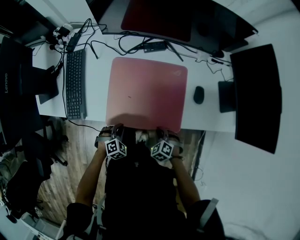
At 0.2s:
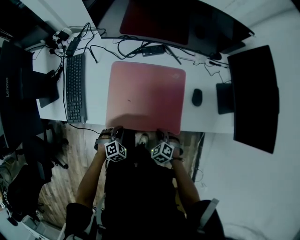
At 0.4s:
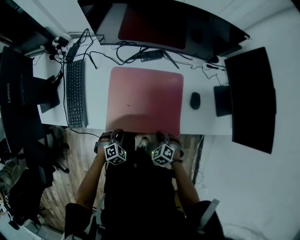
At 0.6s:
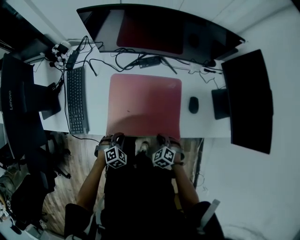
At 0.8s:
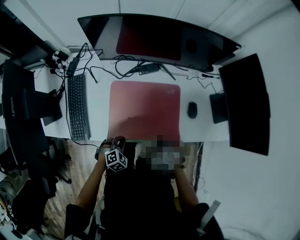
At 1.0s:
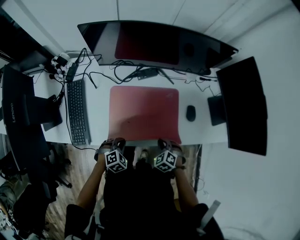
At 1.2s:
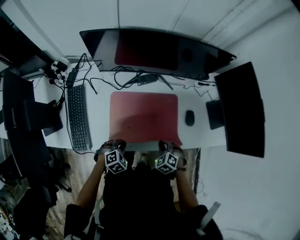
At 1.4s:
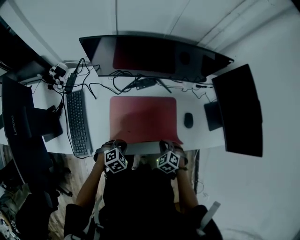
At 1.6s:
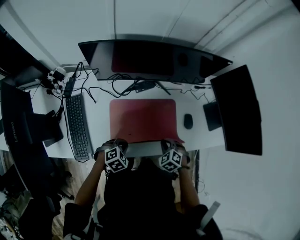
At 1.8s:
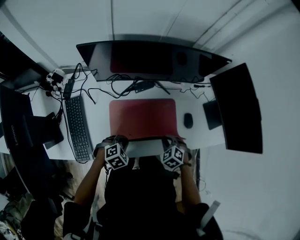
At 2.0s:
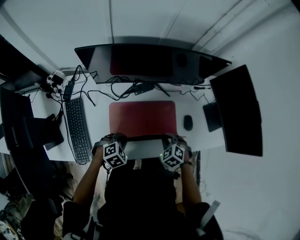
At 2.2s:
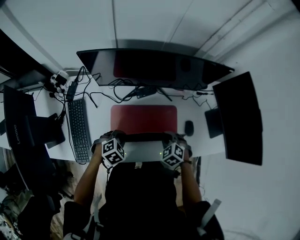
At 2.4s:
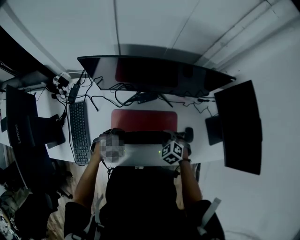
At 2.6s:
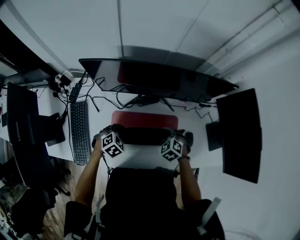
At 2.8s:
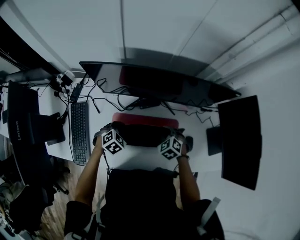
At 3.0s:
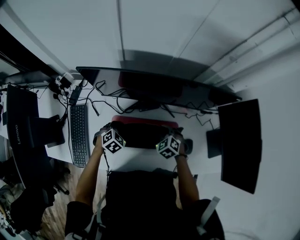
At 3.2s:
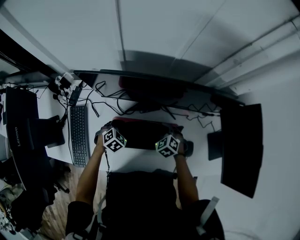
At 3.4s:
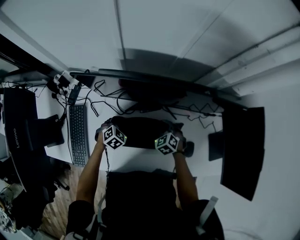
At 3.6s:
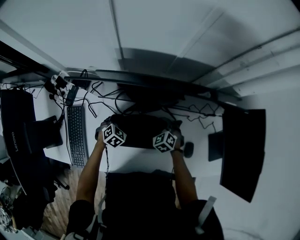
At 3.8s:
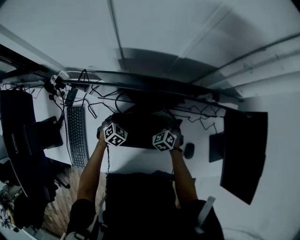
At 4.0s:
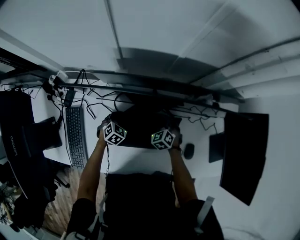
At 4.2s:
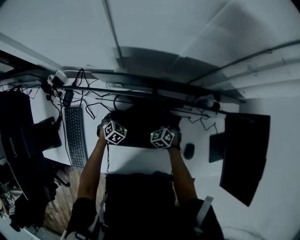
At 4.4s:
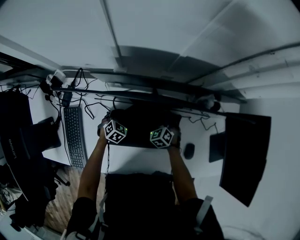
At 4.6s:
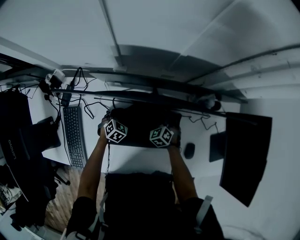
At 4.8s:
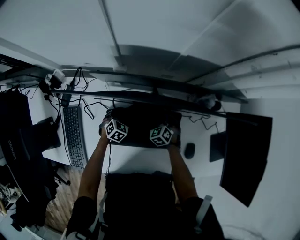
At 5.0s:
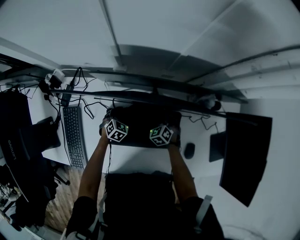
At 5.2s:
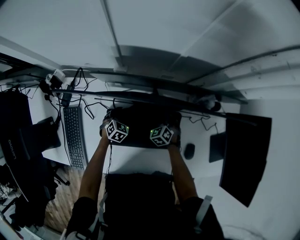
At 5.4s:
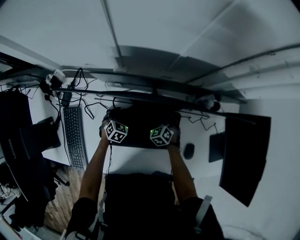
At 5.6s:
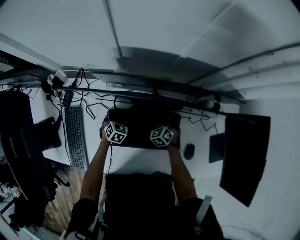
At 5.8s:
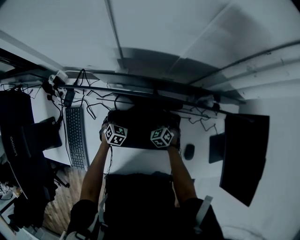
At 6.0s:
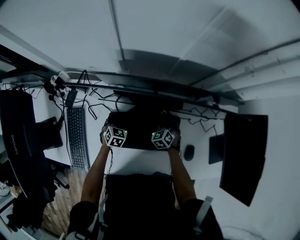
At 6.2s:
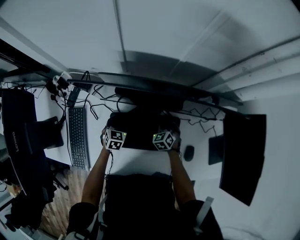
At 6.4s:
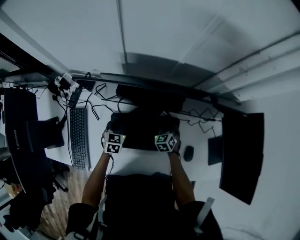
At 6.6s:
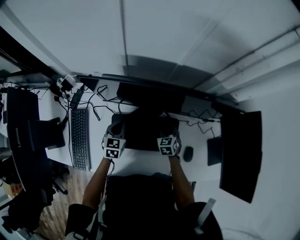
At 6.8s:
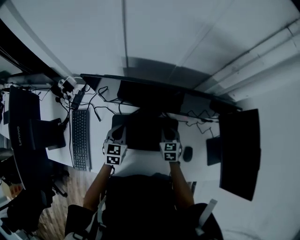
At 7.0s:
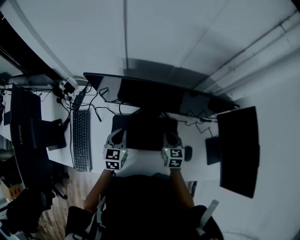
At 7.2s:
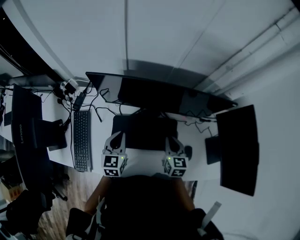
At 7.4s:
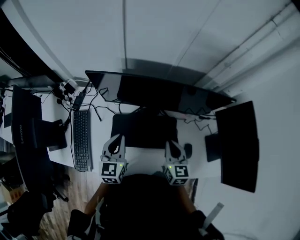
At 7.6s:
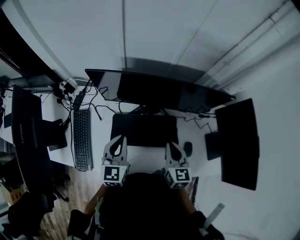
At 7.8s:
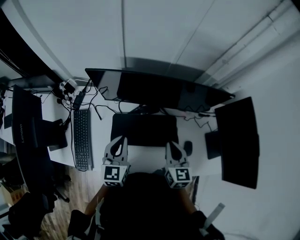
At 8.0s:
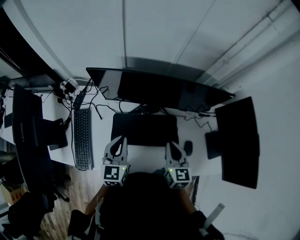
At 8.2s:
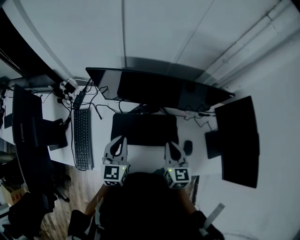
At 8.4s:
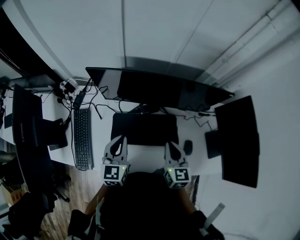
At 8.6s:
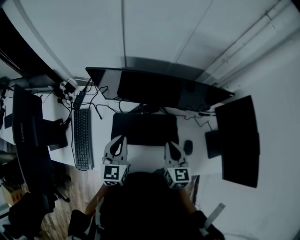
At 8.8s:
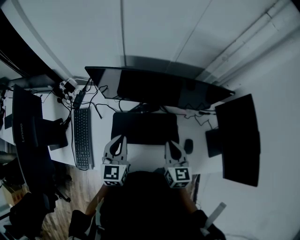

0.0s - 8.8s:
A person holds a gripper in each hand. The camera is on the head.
0.0s - 1.4s: The left gripper moves upward, some 10 cm. Meanwhile the right gripper changes place by about 15 cm.
1.4s - 3.0s: Both grippers travel together forward, some 20 cm.
3.0s - 4.4s: Both grippers move forward and downward, approximately 15 cm.
4.4s - 5.8s: The right gripper opens its fingers. The left gripper opens up.
5.8s - 7.4s: The two grippers go about 30 cm upward and backward. The left gripper points its fingers roughly 30 degrees further upward, and closes; the right gripper swivels approximately 50 degrees, and closes up.
7.4s - 8.8s: There are only small adjustments of the grippers.

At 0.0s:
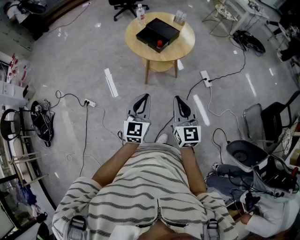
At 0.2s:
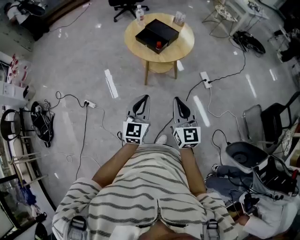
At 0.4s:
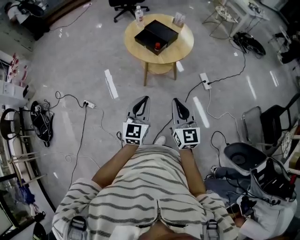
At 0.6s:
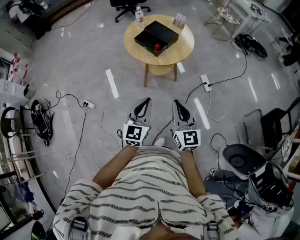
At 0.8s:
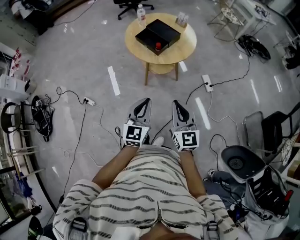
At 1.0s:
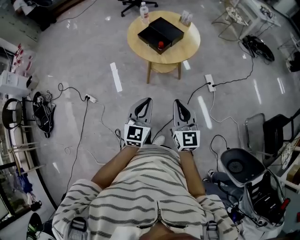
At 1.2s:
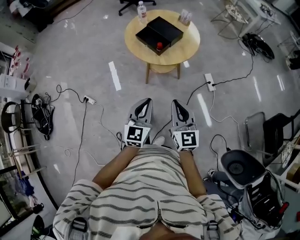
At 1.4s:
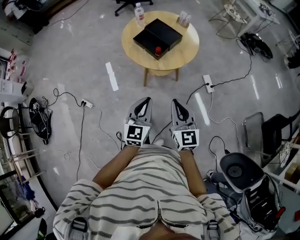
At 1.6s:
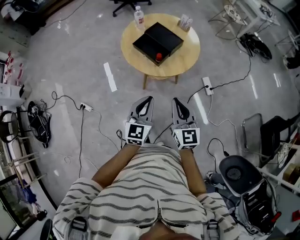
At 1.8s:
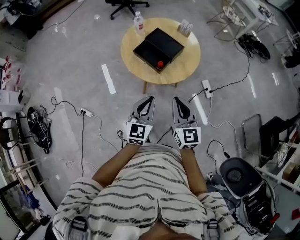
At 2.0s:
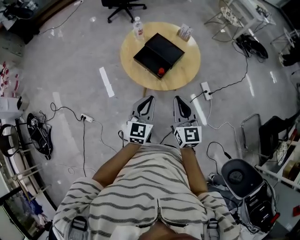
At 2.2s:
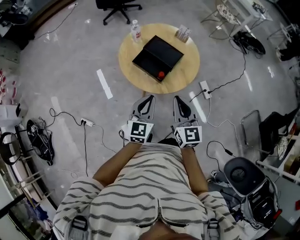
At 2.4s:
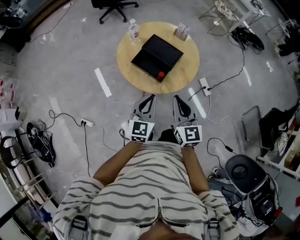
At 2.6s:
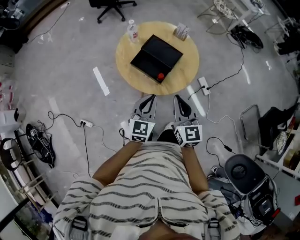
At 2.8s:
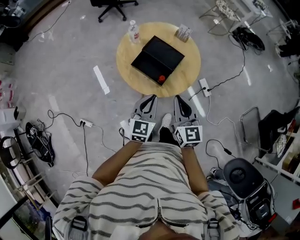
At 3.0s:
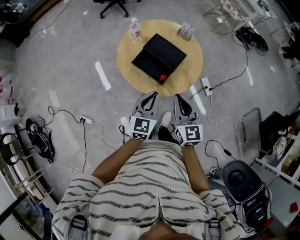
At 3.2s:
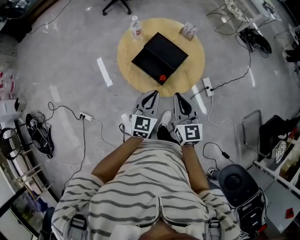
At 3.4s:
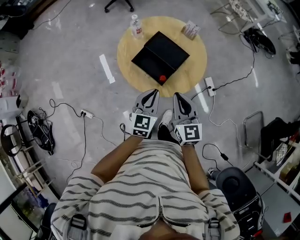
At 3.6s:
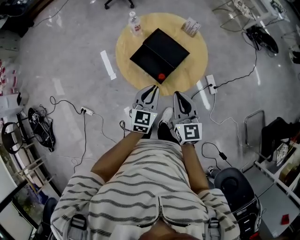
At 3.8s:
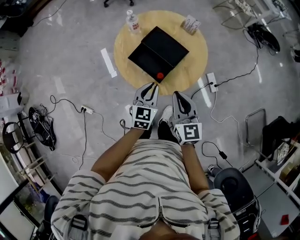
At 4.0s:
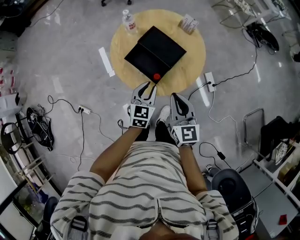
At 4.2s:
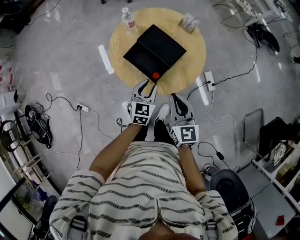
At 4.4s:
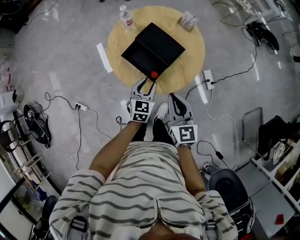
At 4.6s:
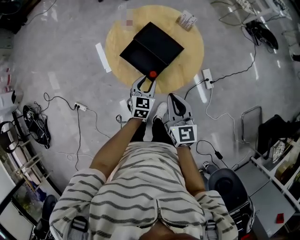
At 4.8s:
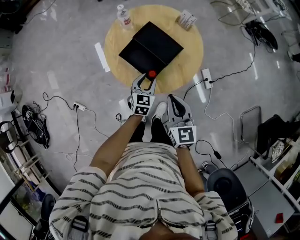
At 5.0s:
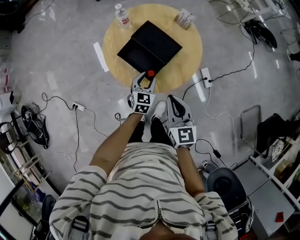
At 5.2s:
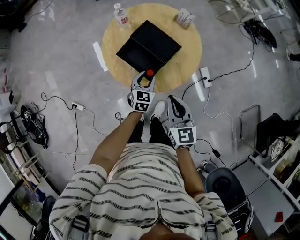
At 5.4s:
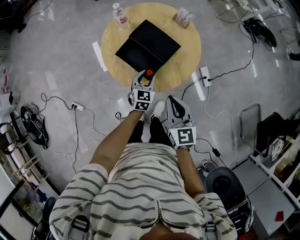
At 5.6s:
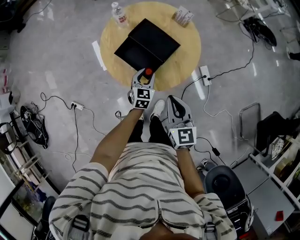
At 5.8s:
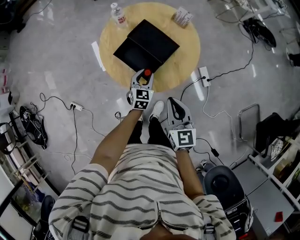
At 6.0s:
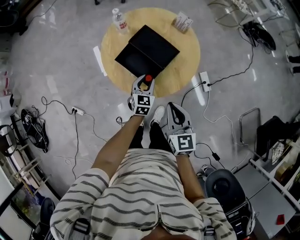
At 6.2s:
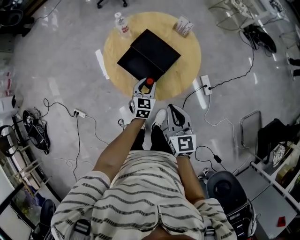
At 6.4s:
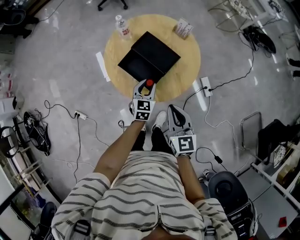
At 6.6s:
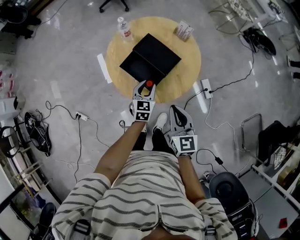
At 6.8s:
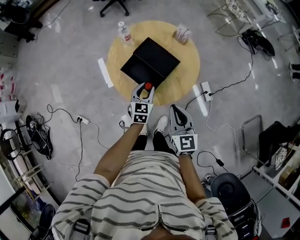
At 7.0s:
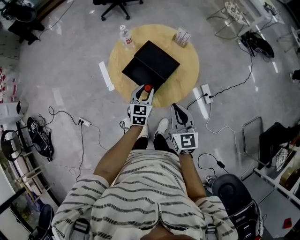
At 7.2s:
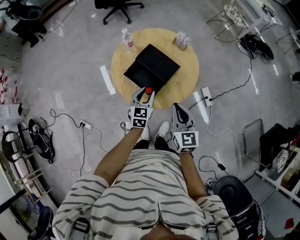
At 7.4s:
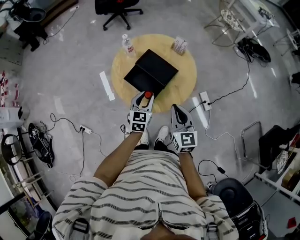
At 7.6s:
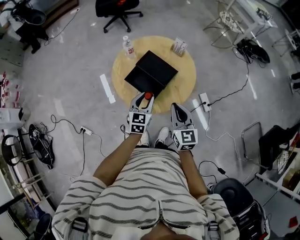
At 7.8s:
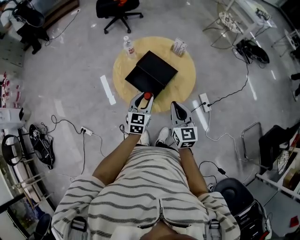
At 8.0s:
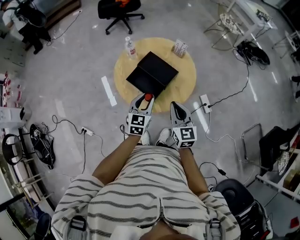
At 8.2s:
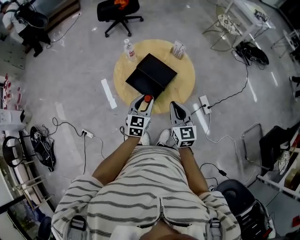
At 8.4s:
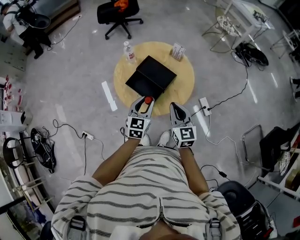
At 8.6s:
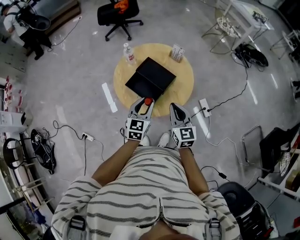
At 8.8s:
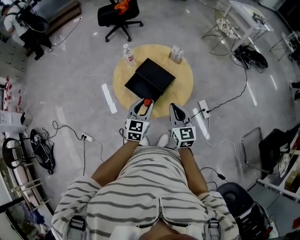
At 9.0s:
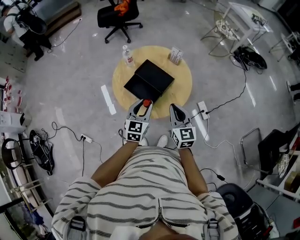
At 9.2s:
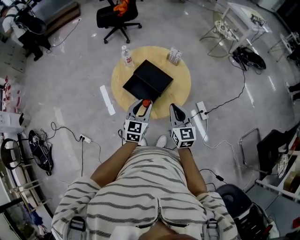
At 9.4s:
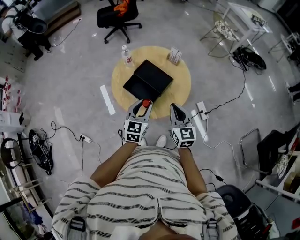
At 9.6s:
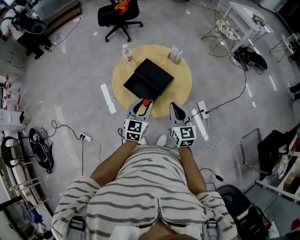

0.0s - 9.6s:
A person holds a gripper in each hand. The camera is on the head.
0.0s - 1.6s: The two grippers go roughly 20 cm forward.
1.6s - 3.2s: The two grippers go about 20 cm forward.
3.2s - 4.8s: The right gripper goes approximately 5 cm downward. Meanwhile the left gripper shifts approximately 20 cm downward and forward, and opens up.
4.8s - 6.4s: The grippers make only small movements.
6.4s - 8.0s: The left gripper travels upward and backward by about 15 cm.
8.0s - 9.6s: There are only small adjustments of the grippers.

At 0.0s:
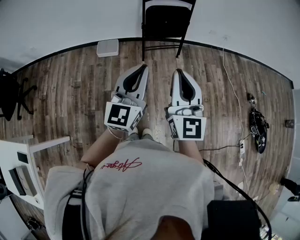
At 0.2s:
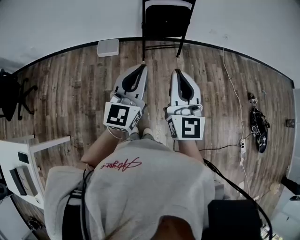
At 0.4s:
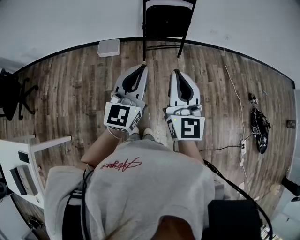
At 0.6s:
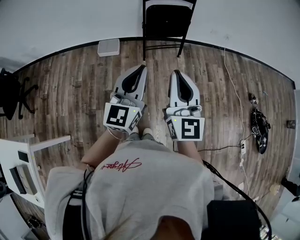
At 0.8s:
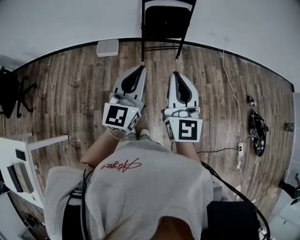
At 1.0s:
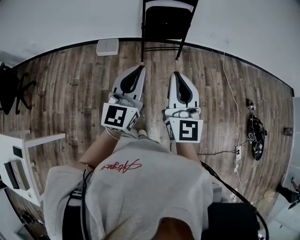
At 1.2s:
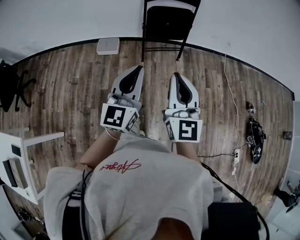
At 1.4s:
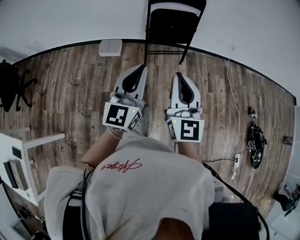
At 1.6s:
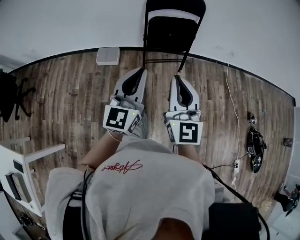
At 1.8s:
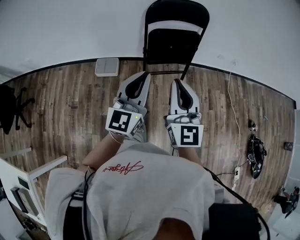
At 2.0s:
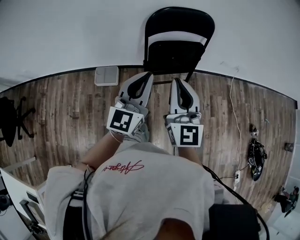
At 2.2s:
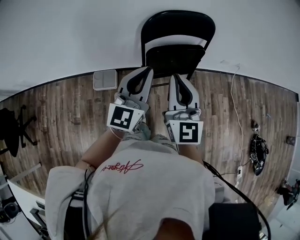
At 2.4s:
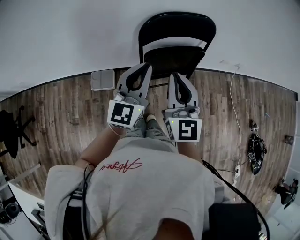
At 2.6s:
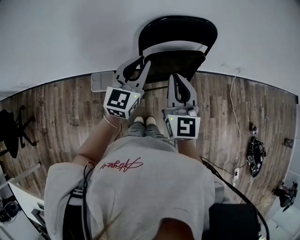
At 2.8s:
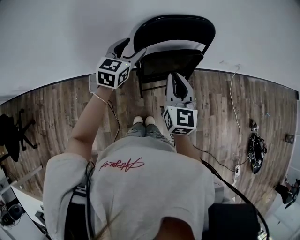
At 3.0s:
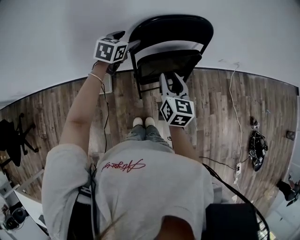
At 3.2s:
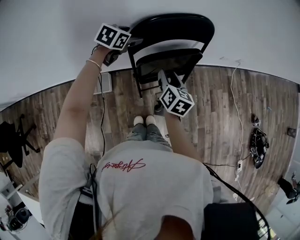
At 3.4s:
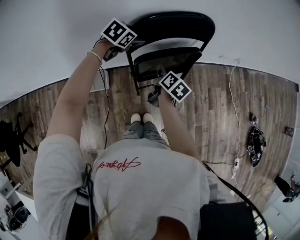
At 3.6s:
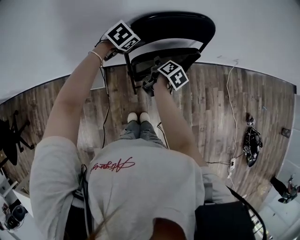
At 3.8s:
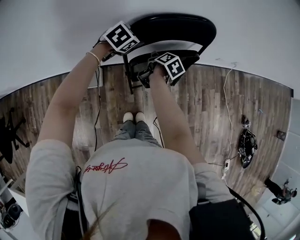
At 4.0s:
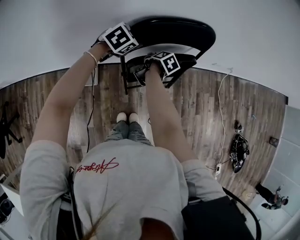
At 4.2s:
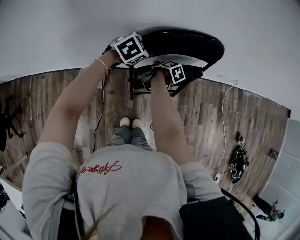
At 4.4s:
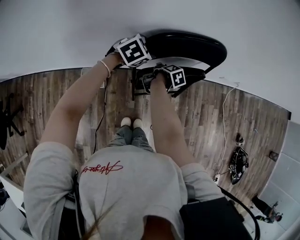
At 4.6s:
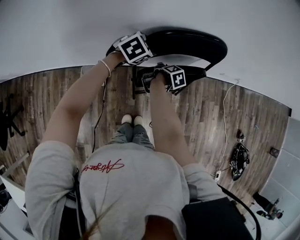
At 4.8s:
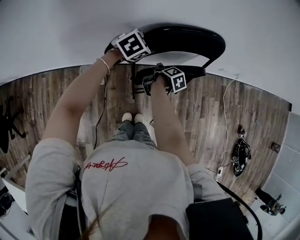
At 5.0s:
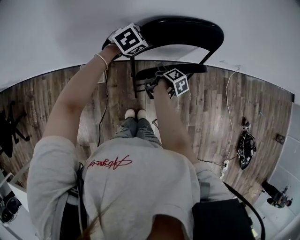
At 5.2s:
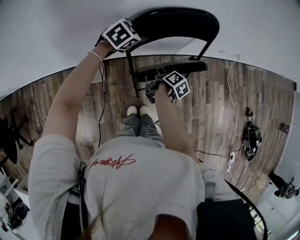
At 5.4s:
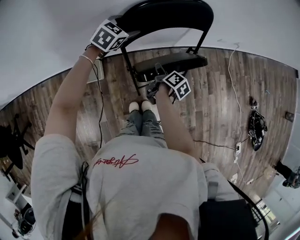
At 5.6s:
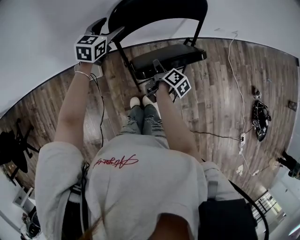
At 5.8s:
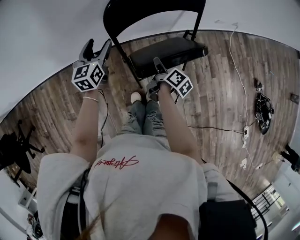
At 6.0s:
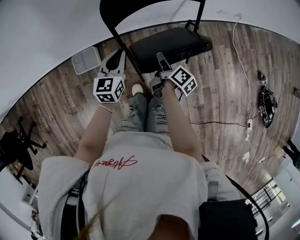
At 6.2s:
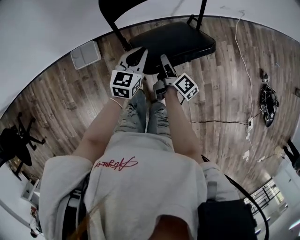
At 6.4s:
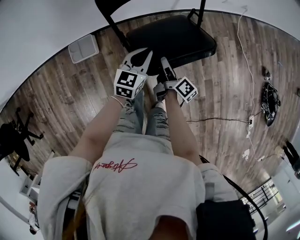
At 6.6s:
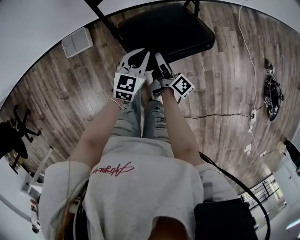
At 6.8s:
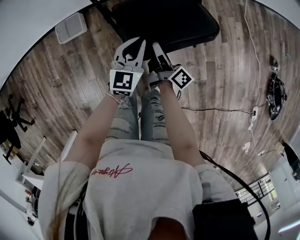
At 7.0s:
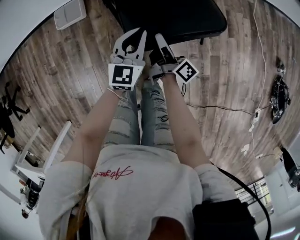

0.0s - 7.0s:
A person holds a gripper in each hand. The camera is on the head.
0.0s - 1.4s: The two grippers go approximately 5 cm forward.
1.4s - 2.8s: Both grippers are carried forward, about 50 cm. The right gripper swivels approximately 20 degrees. Meanwhile the left gripper swivels approximately 30 degrees, and opens up.
2.8s - 4.2s: The left gripper moves downward and forward, about 15 cm, and points its fingers approximately 30 degrees further downward, while the right gripper goes some 35 cm downward and forward, rotates around the line of its fingers by some 70 degrees, clockwise from behind, and opens.
4.2s - 5.6s: The left gripper shifts about 5 cm to the left, and rotates roughly 30 degrees. The right gripper heads backward and to the right, covering roughly 15 cm.
5.6s - 7.0s: The right gripper shifts approximately 25 cm backward, downward and to the right, and tilts its fingers about 30 degrees upward. The left gripper shifts approximately 40 cm backward, to the right and downward, and closes its fingers.
